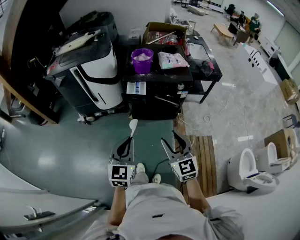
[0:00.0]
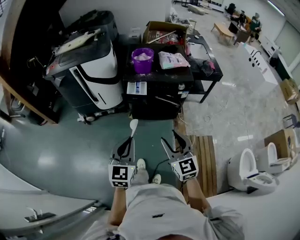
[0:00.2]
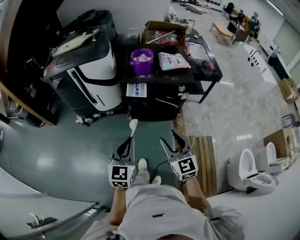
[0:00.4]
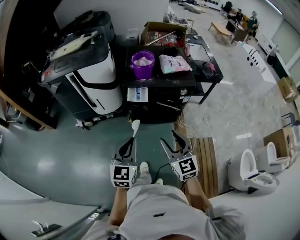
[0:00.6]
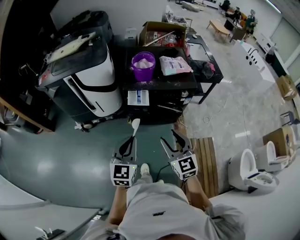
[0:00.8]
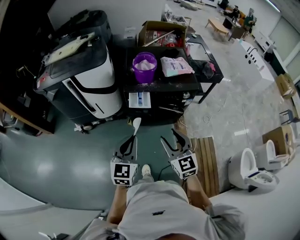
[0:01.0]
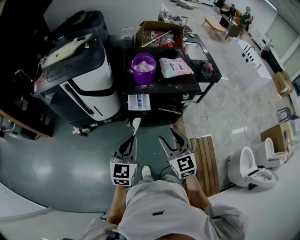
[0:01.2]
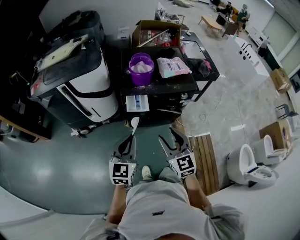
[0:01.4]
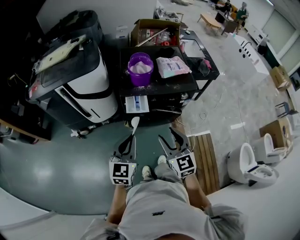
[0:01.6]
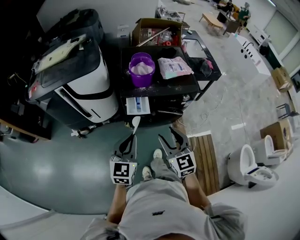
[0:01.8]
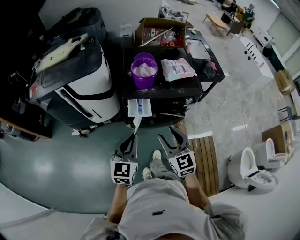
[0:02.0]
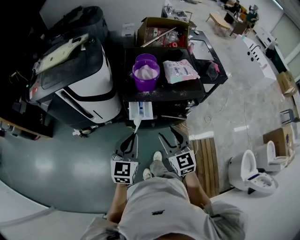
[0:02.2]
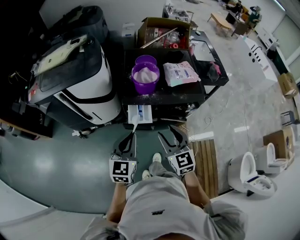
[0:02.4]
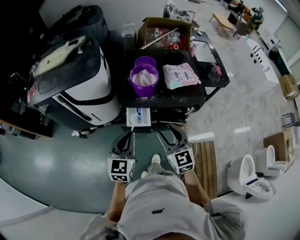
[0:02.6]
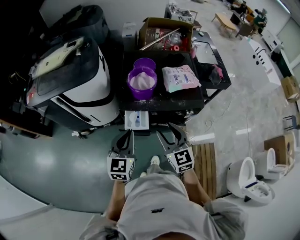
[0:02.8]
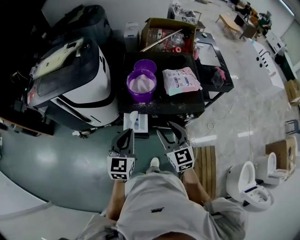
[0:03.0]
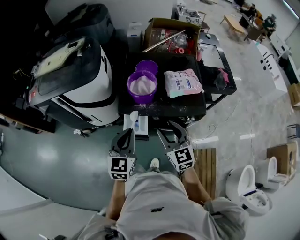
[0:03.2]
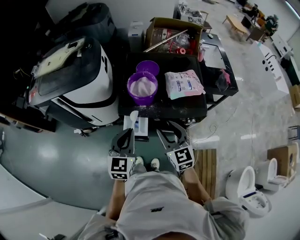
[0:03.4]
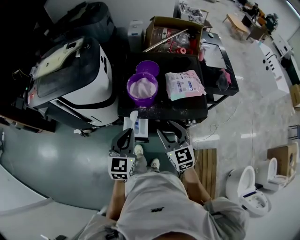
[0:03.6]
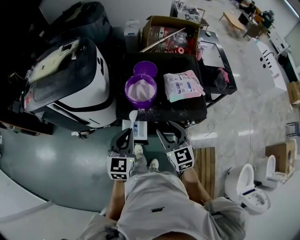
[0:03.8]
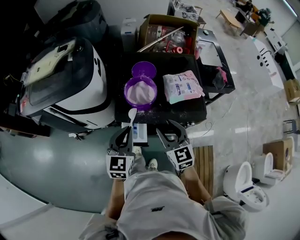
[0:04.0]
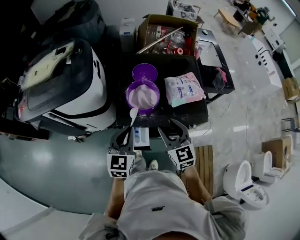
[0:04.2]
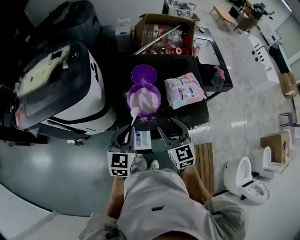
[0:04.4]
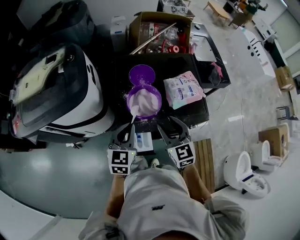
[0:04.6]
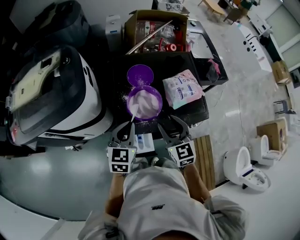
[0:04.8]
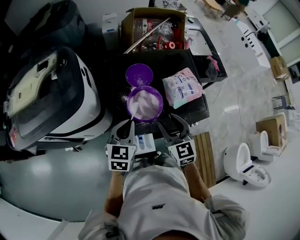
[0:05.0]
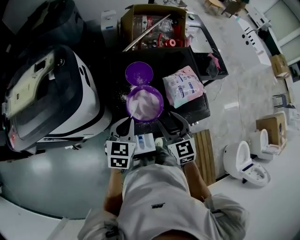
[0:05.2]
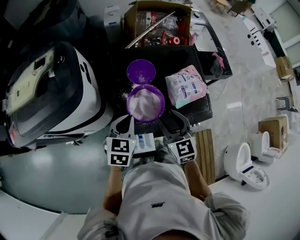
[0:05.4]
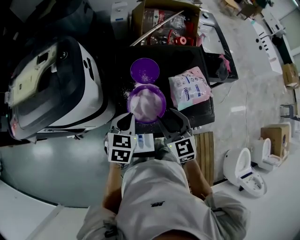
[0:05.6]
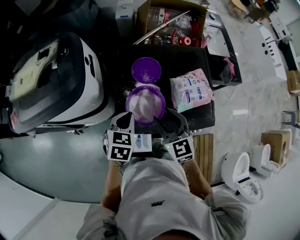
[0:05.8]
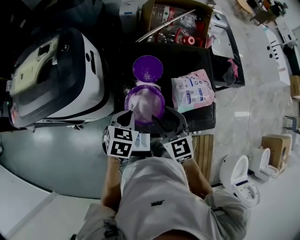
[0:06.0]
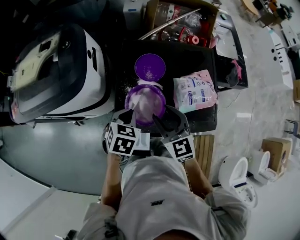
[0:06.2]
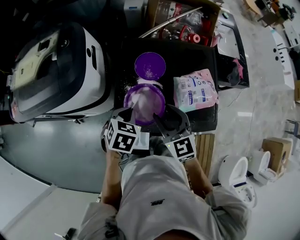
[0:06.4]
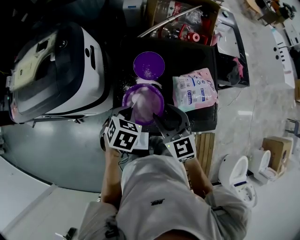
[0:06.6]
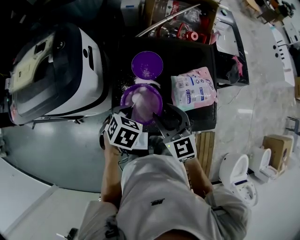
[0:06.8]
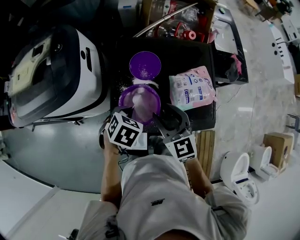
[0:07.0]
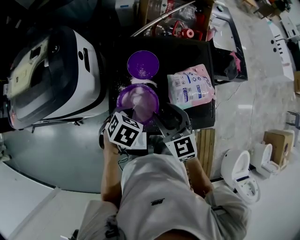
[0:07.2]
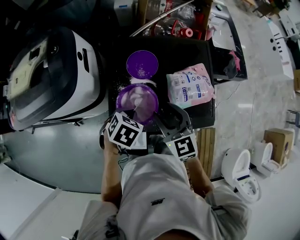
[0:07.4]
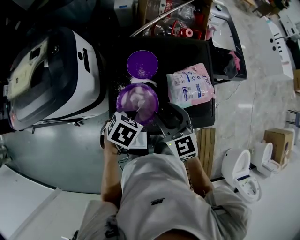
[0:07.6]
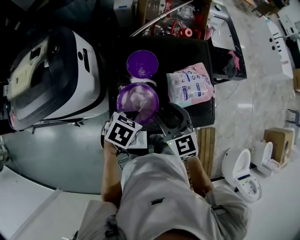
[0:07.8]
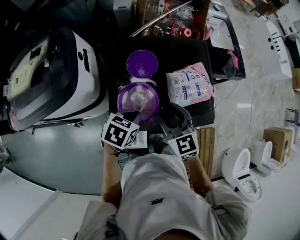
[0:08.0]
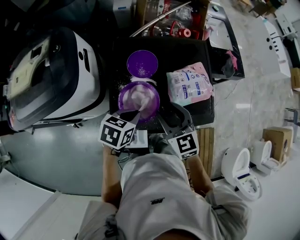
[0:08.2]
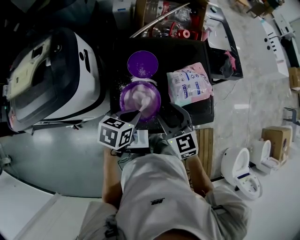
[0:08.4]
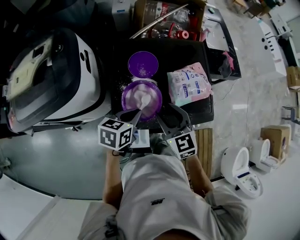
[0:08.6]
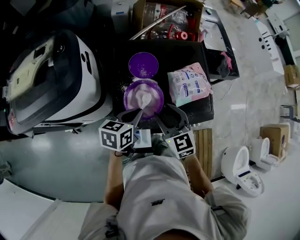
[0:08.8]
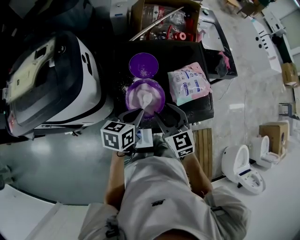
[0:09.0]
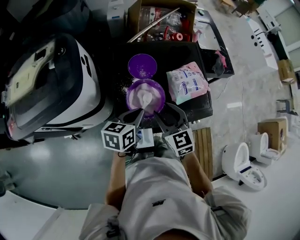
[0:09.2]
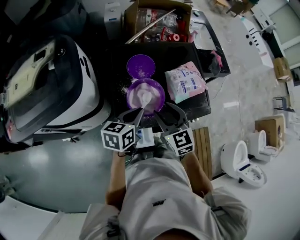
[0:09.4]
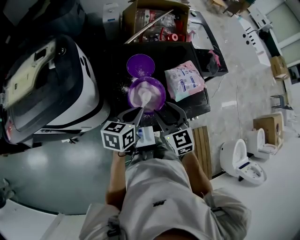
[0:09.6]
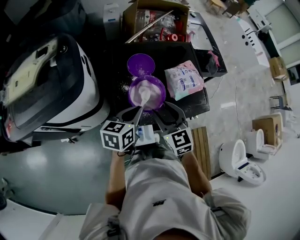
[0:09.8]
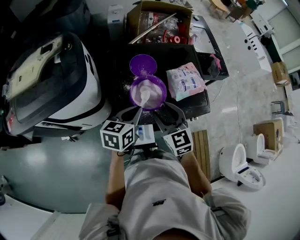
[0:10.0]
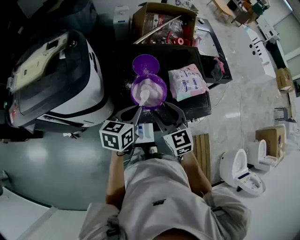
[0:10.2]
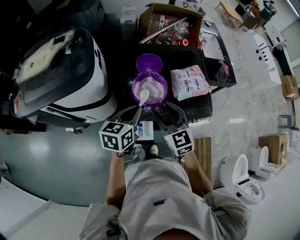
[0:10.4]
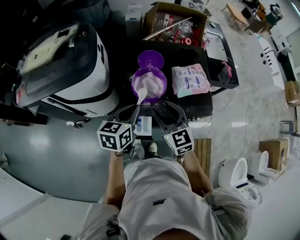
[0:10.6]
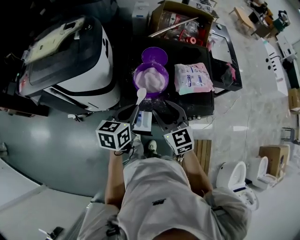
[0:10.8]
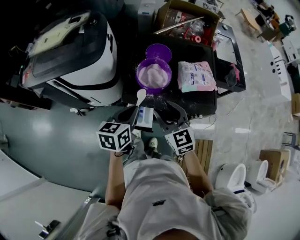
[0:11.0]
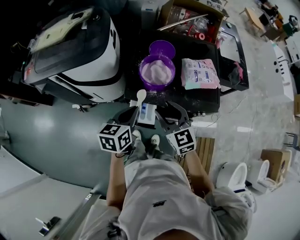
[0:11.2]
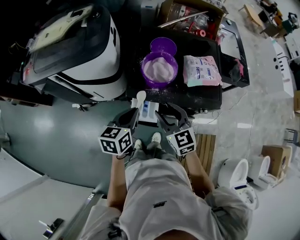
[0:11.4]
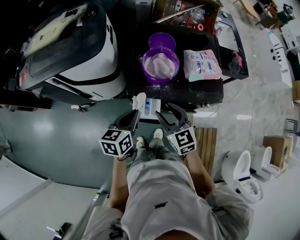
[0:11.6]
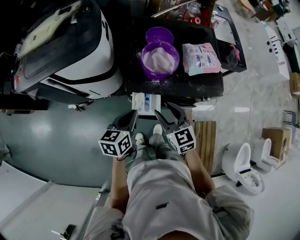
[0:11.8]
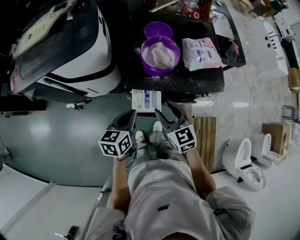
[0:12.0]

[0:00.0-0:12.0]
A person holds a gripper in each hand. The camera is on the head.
0:00.0 to 0:01.6: The two grippers go approximately 20 cm forward.
0:01.6 to 0:03.0: The grippers both shift forward by some 20 cm.
0:03.0 to 0:04.4: Both grippers move forward, approximately 15 cm.
0:04.4 to 0:06.0: The left gripper is displaced forward and downward by approximately 15 cm, and swivels some 30 degrees. The right gripper moves forward, roughly 10 cm.
0:06.0 to 0:07.6: The left gripper heads to the right, covering some 5 cm, and turns by about 20 degrees.
0:07.6 to 0:09.0: The right gripper changes place by approximately 5 cm. Meanwhile the left gripper tips its fingers upward by roughly 30 degrees.
0:09.0 to 0:10.4: Both grippers move backward, approximately 5 cm.
0:10.4 to 0:12.0: The right gripper heads backward and downward, covering roughly 15 cm, while the left gripper moves backward, downward and to the left, about 20 cm.

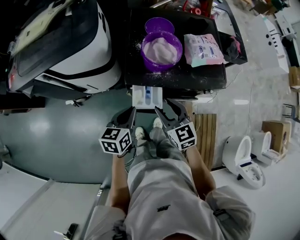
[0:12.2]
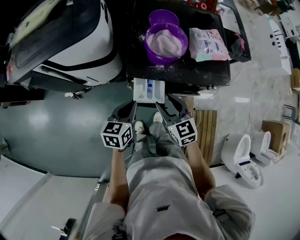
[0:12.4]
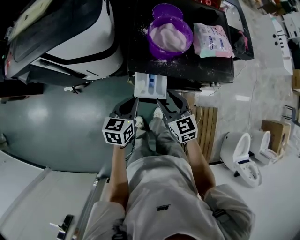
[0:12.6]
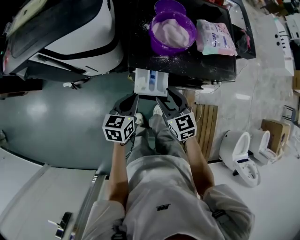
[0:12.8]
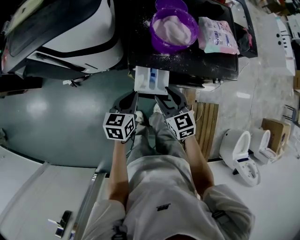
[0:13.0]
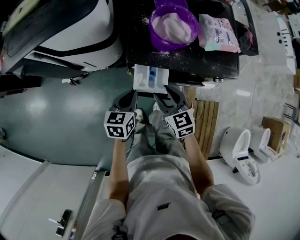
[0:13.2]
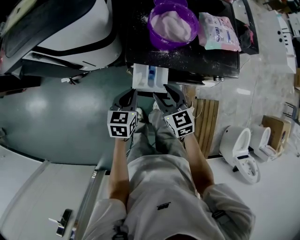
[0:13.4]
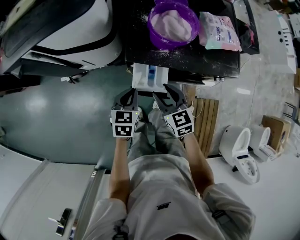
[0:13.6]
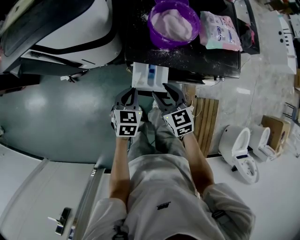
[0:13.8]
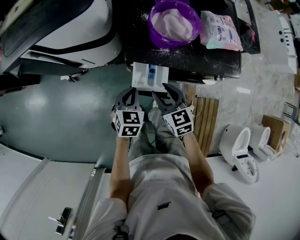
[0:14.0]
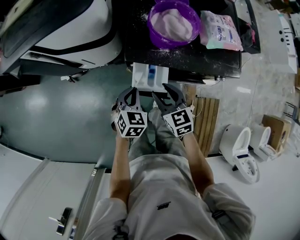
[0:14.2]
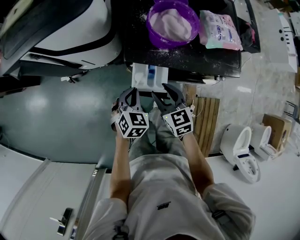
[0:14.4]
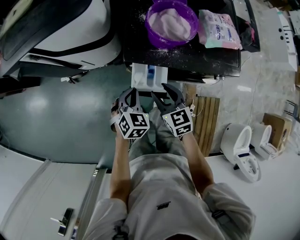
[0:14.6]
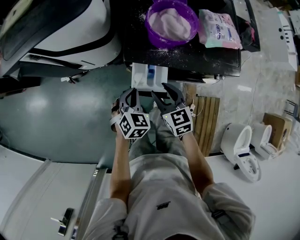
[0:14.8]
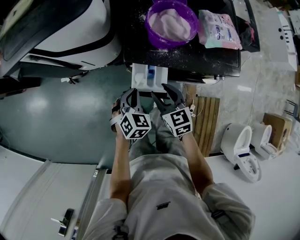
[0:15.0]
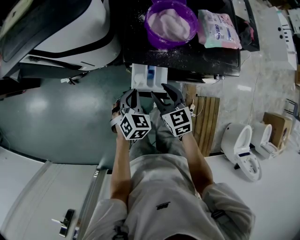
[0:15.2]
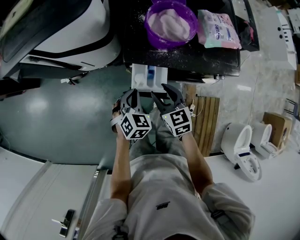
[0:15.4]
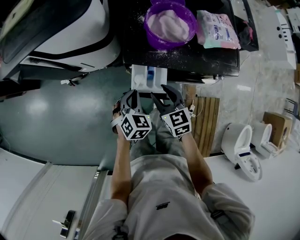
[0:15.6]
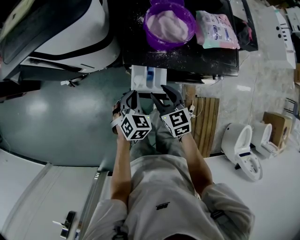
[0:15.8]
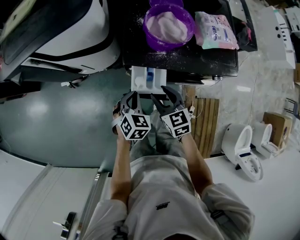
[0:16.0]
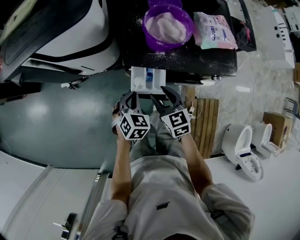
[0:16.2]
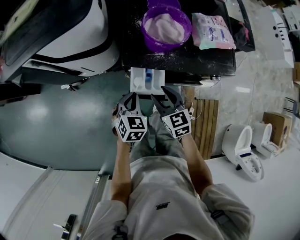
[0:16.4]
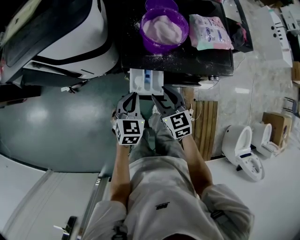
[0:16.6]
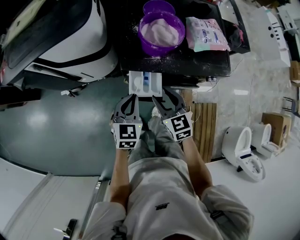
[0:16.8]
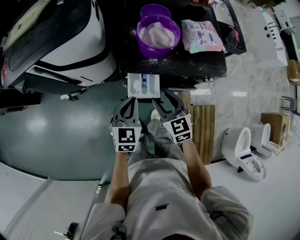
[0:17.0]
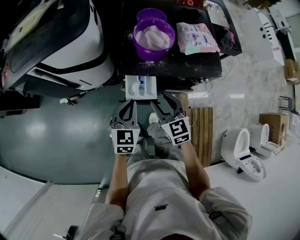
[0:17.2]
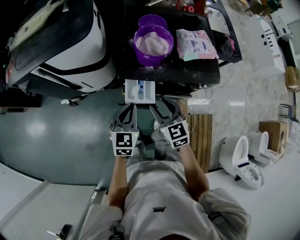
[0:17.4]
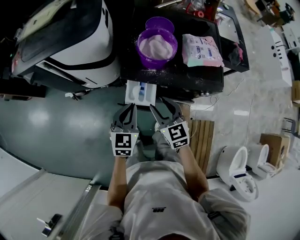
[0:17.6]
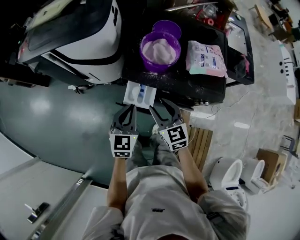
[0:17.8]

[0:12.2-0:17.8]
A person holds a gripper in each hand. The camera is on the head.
0:12.2 to 0:13.6: The two grippers go some 10 cm downward.
0:13.6 to 0:15.0: The left gripper changes its angle by some 30 degrees.
0:15.0 to 0:16.4: There are only small adjustments of the grippers.
0:16.4 to 0:17.8: The two grippers go approximately 10 cm upward. The left gripper changes its angle by about 30 degrees.

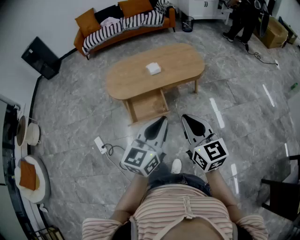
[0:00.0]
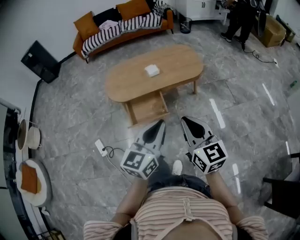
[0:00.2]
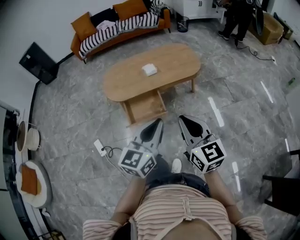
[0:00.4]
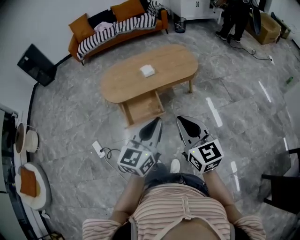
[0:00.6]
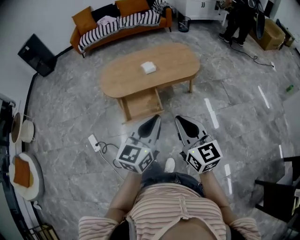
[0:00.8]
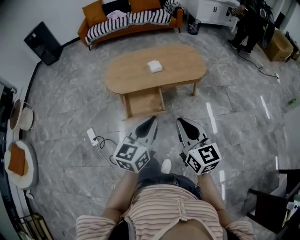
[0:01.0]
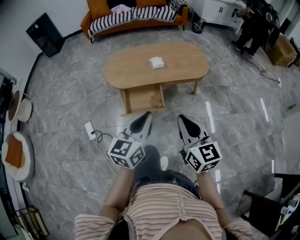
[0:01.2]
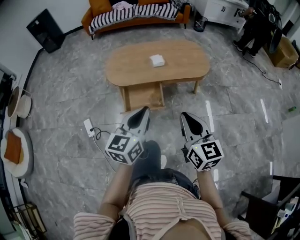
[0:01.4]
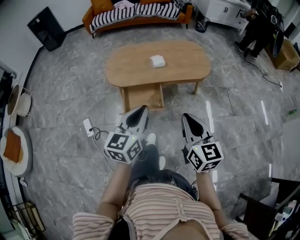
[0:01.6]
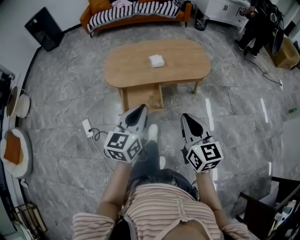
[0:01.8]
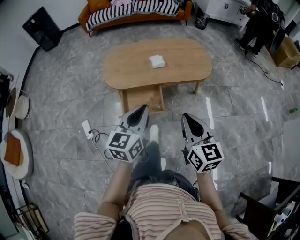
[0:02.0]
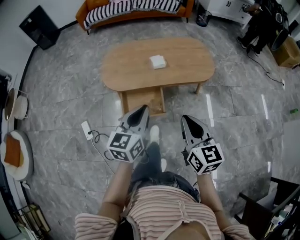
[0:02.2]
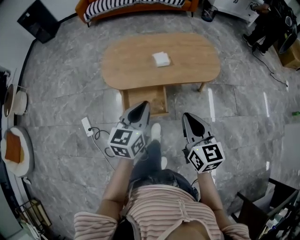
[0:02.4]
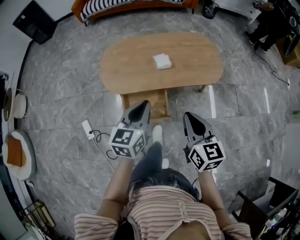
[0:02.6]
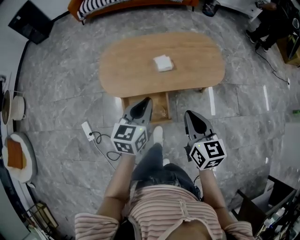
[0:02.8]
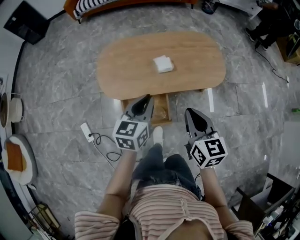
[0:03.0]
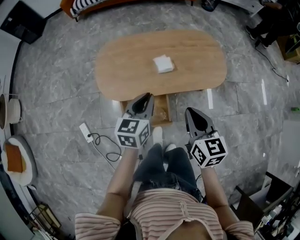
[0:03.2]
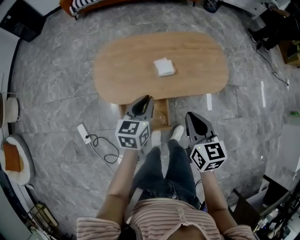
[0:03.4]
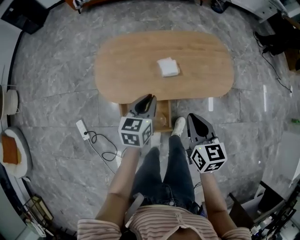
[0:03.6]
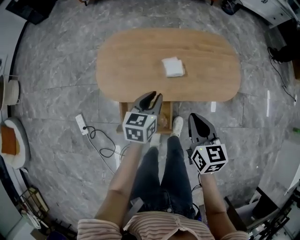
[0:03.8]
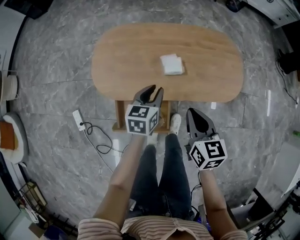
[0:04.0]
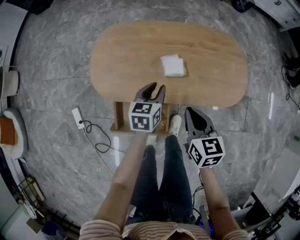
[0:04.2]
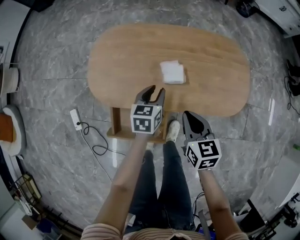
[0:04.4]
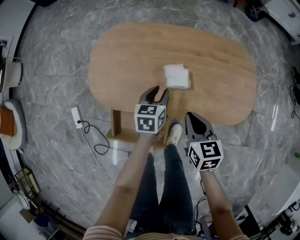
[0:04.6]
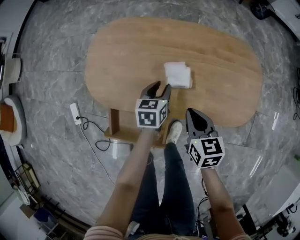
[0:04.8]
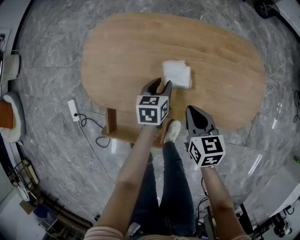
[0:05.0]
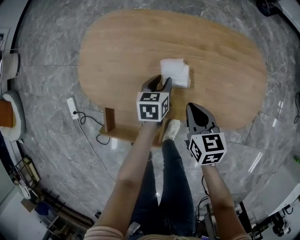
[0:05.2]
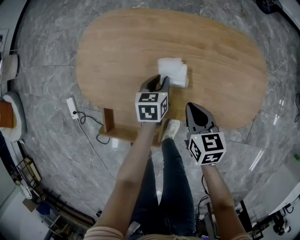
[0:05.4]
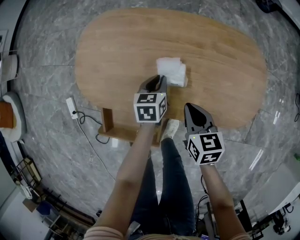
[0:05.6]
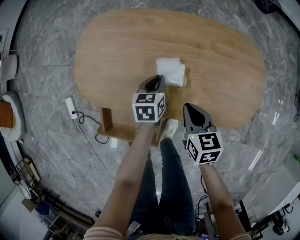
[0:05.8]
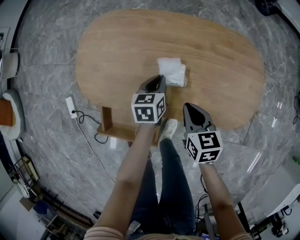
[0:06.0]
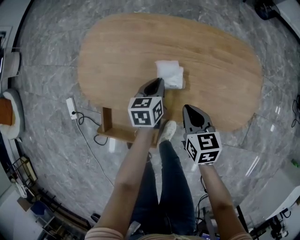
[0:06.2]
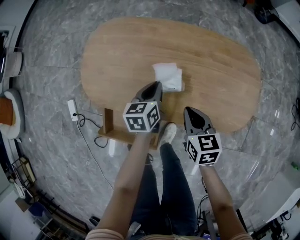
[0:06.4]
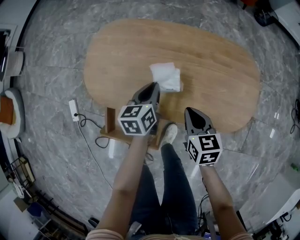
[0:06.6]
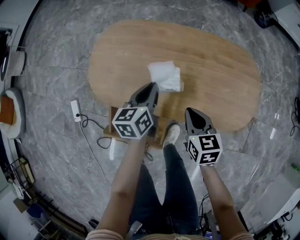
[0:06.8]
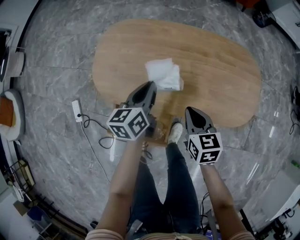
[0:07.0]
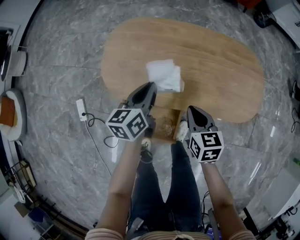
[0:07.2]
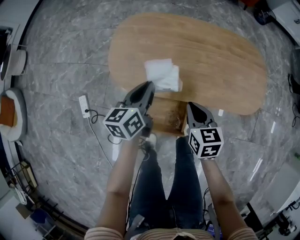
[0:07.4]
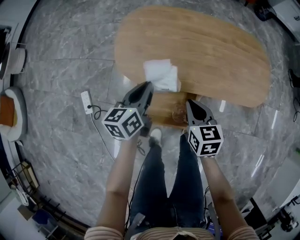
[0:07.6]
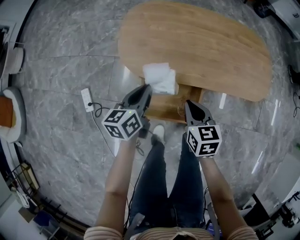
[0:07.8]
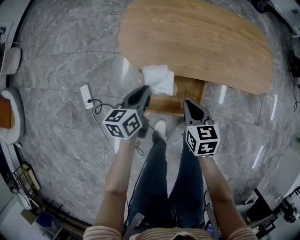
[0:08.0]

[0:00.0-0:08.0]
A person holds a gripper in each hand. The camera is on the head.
0:00.0 to 0:01.6: The left gripper travels to the left and forward by about 10 cm.
0:01.6 to 0:03.2: The grippers both shift forward by about 35 cm.
0:03.2 to 0:04.8: The two grippers go roughly 35 cm downward and forward. The left gripper turns by roughly 30 degrees, and opens; the right gripper changes its angle by roughly 20 degrees.
0:04.8 to 0:06.4: The left gripper closes up.
0:06.4 to 0:08.0: Both grippers move to the left and backward, roughly 35 cm.
